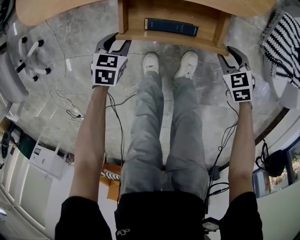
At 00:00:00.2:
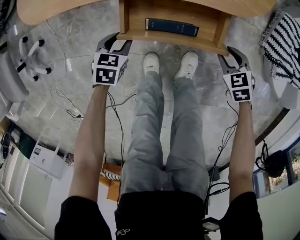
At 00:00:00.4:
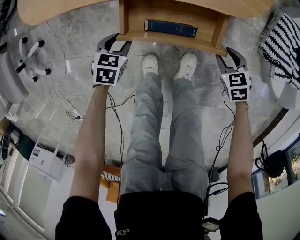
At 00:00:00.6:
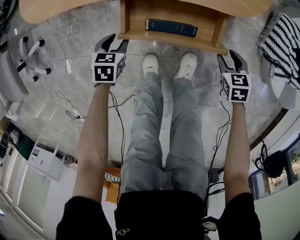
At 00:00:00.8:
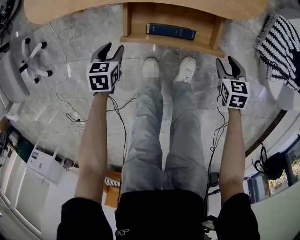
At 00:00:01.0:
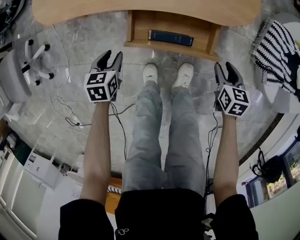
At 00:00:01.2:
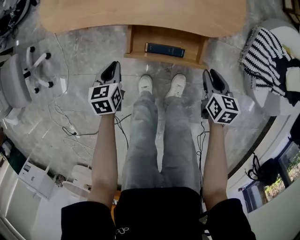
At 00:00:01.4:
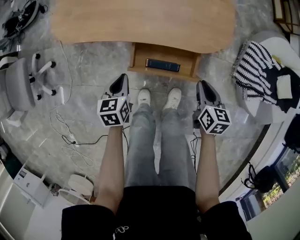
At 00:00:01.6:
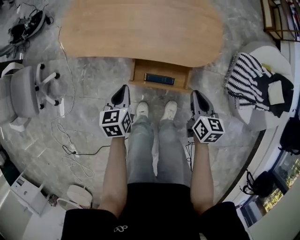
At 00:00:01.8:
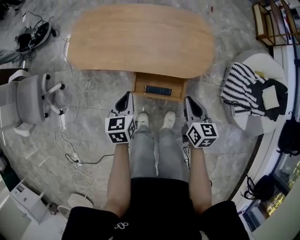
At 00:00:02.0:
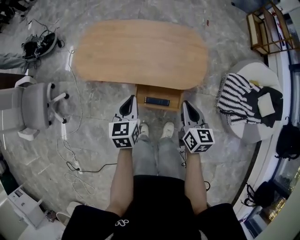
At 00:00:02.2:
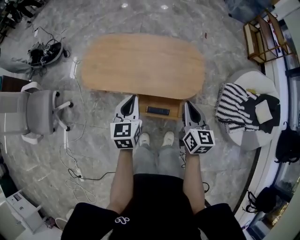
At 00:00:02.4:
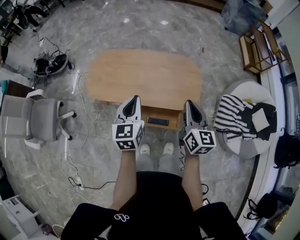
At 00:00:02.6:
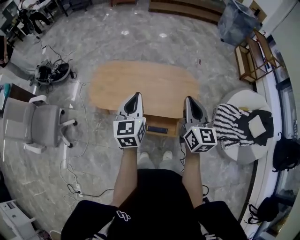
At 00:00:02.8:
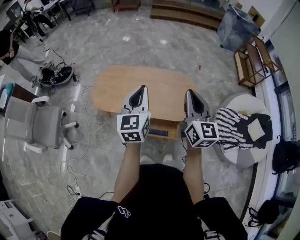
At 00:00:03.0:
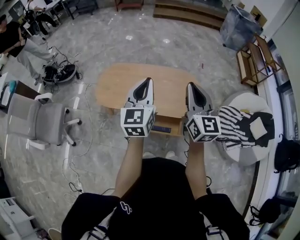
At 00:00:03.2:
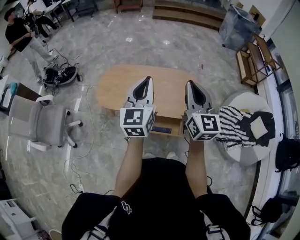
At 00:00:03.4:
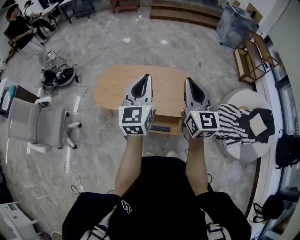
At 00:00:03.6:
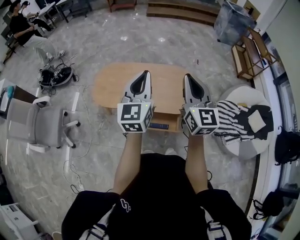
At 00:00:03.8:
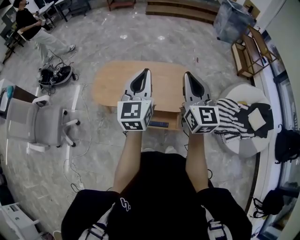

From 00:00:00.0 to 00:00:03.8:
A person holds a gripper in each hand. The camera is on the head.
From 00:00:00.0 to 00:00:01.2: The two grippers go about 15 cm upward. The left gripper swivels approximately 30 degrees, and closes; the right gripper swivels some 40 degrees.
From 00:00:01.2 to 00:00:02.6: Both grippers move upward, approximately 50 cm. The left gripper angles its fingers upward, by roughly 40 degrees. The right gripper points its fingers roughly 50 degrees further upward, and closes.
From 00:00:02.6 to 00:00:03.8: The two grippers go about 10 cm upward.

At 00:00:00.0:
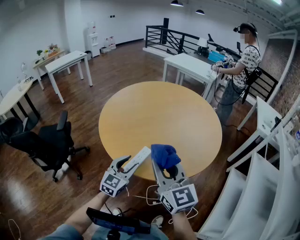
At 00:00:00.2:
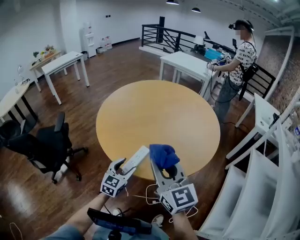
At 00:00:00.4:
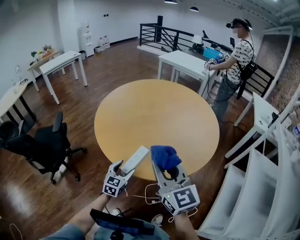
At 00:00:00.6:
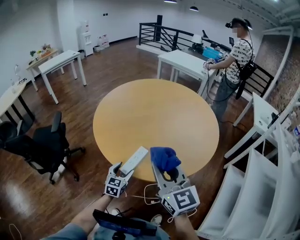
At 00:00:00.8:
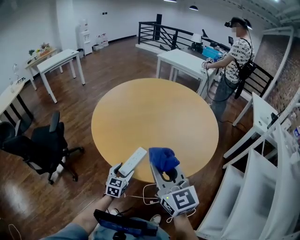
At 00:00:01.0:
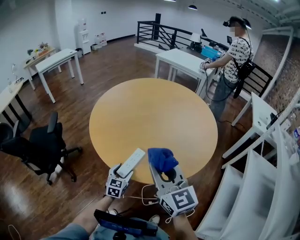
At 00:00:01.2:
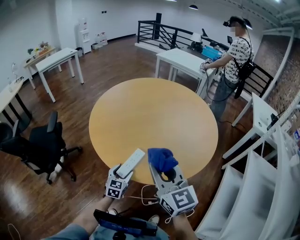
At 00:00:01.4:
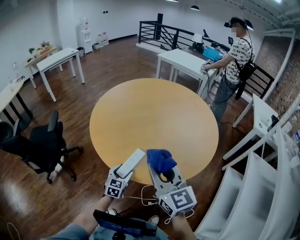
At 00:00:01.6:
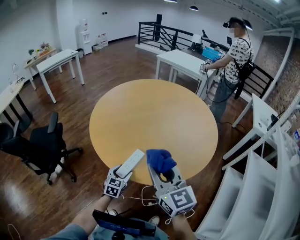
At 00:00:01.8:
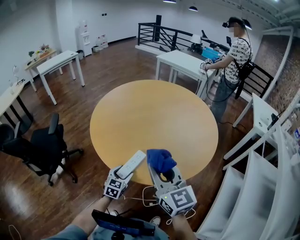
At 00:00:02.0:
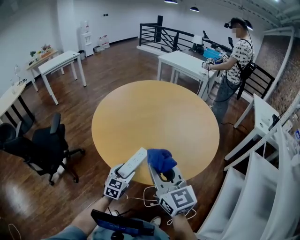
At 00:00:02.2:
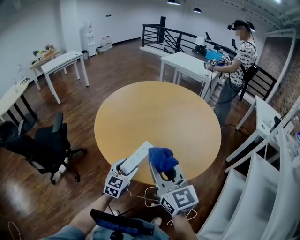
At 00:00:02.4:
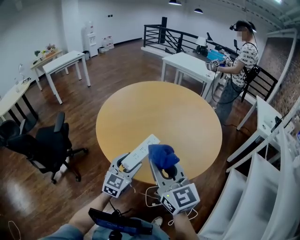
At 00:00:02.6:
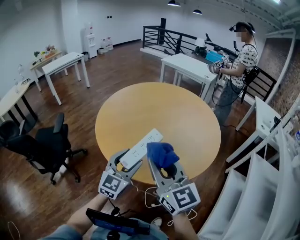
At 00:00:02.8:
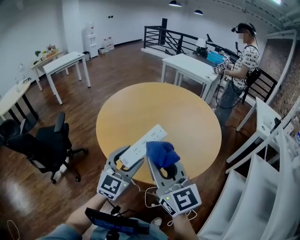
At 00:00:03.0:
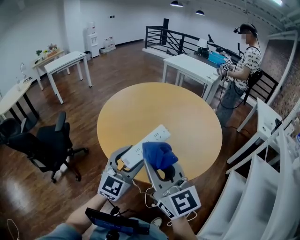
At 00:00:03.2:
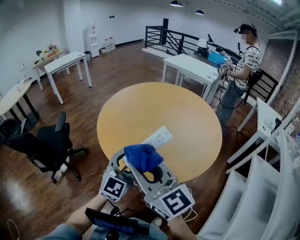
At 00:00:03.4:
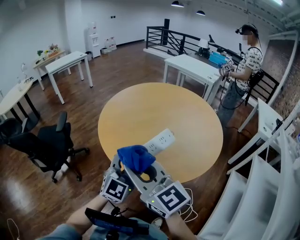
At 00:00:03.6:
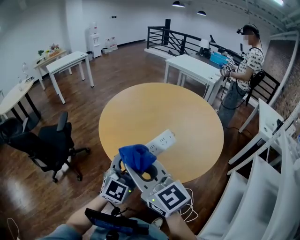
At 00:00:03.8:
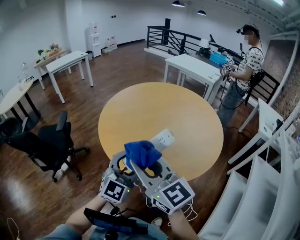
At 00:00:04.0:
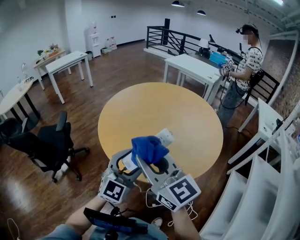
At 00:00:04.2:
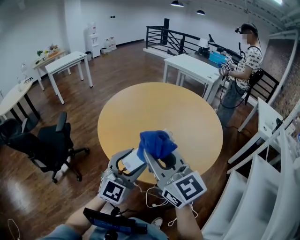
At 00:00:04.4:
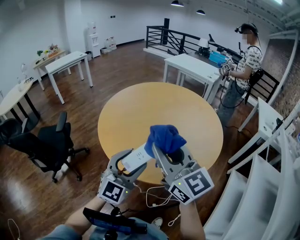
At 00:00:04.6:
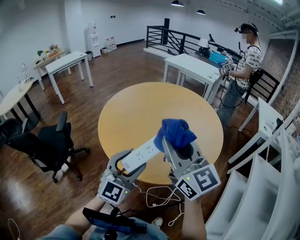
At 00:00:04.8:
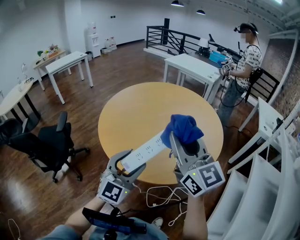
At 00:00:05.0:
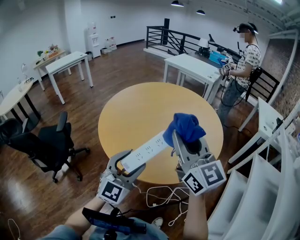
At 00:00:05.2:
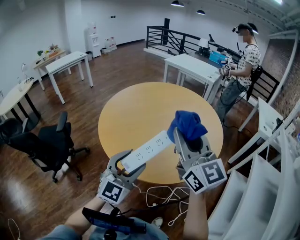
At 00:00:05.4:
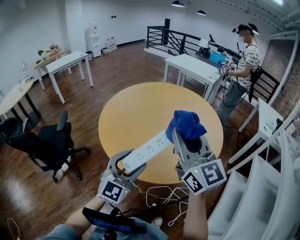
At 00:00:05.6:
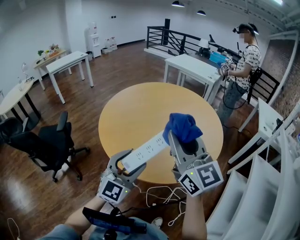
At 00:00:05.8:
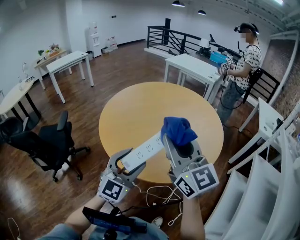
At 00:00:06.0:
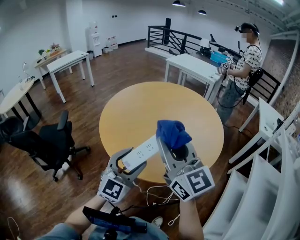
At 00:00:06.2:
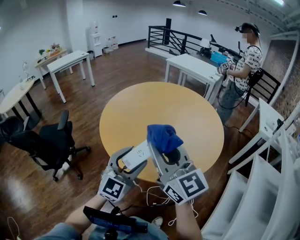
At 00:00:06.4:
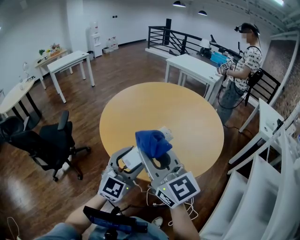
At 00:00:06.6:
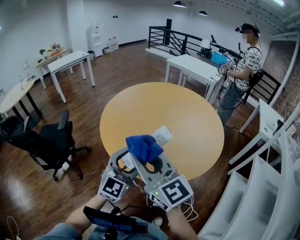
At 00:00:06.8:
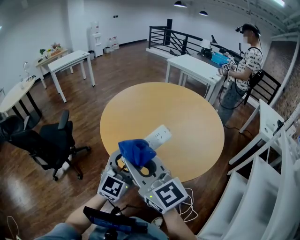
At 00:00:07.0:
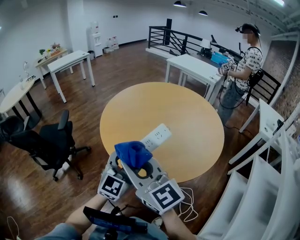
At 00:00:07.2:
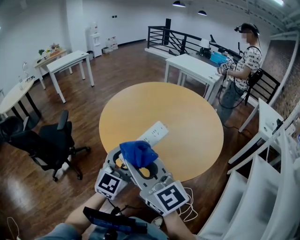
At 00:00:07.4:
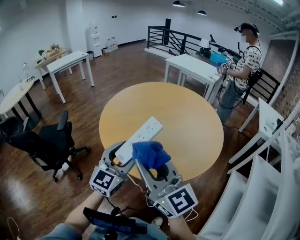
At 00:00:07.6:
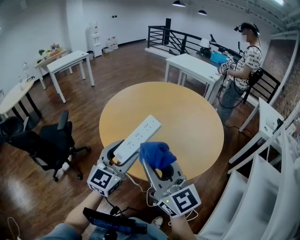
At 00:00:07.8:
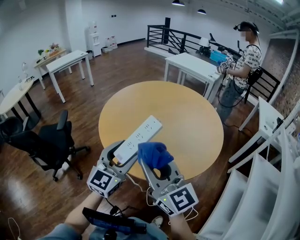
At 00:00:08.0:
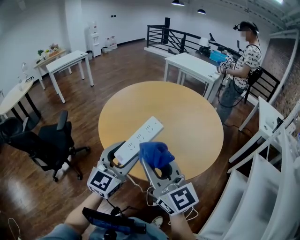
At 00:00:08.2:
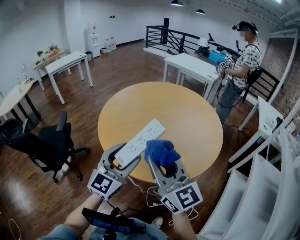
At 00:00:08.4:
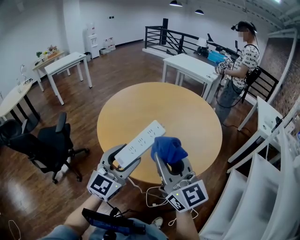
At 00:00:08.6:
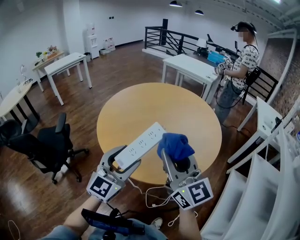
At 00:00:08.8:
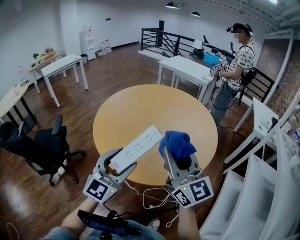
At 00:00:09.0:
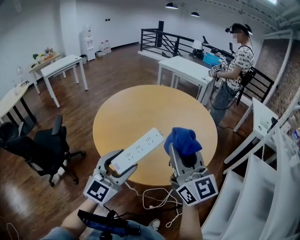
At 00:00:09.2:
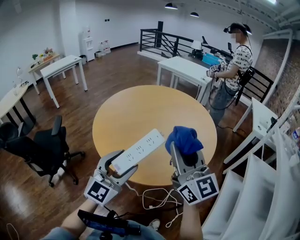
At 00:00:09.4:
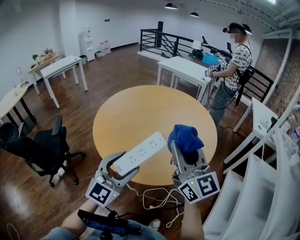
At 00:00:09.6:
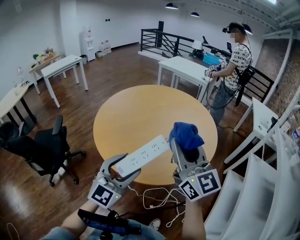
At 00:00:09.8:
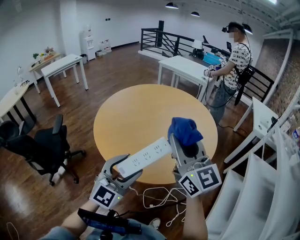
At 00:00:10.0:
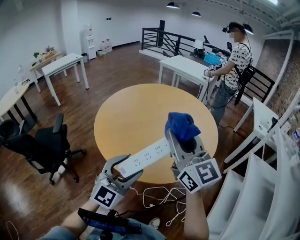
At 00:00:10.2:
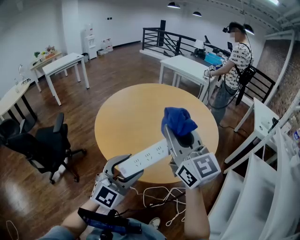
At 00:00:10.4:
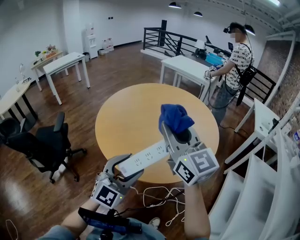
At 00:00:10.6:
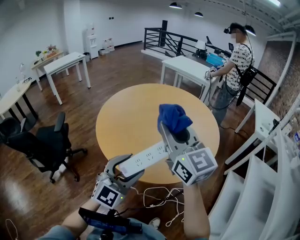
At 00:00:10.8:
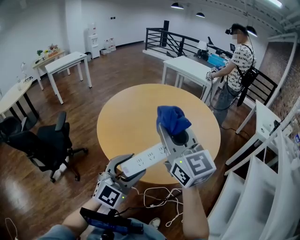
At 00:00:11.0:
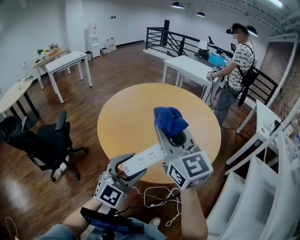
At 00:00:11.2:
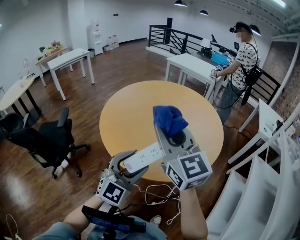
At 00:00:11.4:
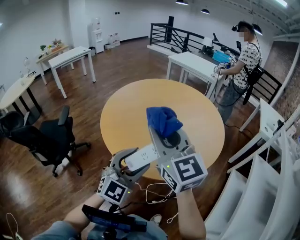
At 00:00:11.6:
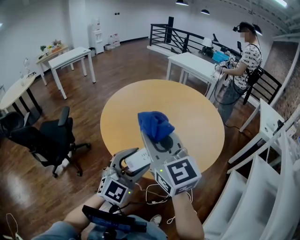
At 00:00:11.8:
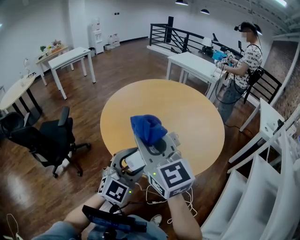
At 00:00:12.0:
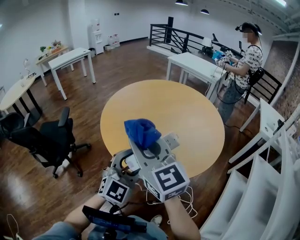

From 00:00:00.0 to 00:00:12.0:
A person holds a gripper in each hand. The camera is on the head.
From 00:00:00.0 to 00:00:01.6: The left gripper is displaced downward by some 15 cm, and changes its angle by roughly 20 degrees.
From 00:00:01.6 to 00:00:03.0: The right gripper travels upward by approximately 10 cm, while the left gripper shifts roughly 30 cm upward, and rotates approximately 40 degrees.
From 00:00:03.0 to 00:00:04.4: The right gripper moves roughly 5 cm to the left and comes back.
From 00:00:06.0 to 00:00:07.6: The right gripper moves some 10 cm to the left and comes back.
From 00:00:07.6 to 00:00:09.0: The right gripper shifts roughly 10 cm to the right.
From 00:00:09.0 to 00:00:10.4: The right gripper shifts about 5 cm to the left.
From 00:00:10.4 to 00:00:12.0: The right gripper is displaced to the left and backward by approximately 10 cm.

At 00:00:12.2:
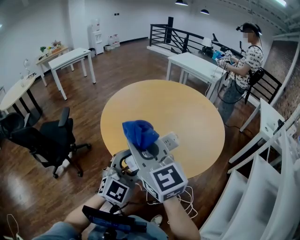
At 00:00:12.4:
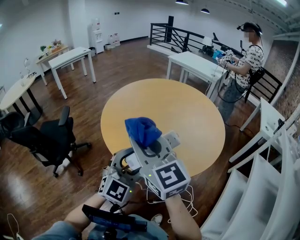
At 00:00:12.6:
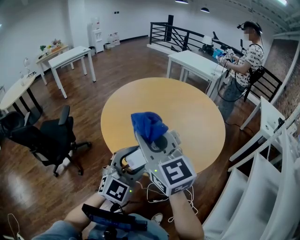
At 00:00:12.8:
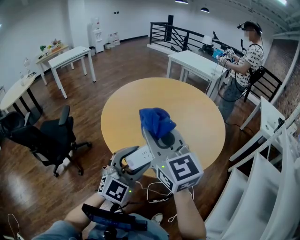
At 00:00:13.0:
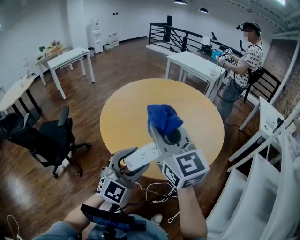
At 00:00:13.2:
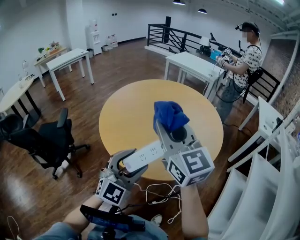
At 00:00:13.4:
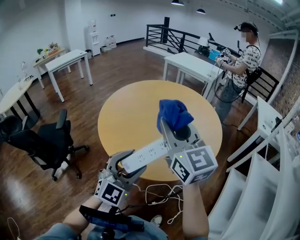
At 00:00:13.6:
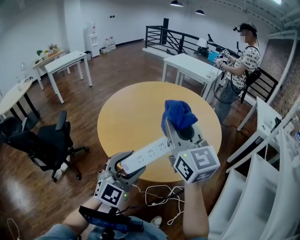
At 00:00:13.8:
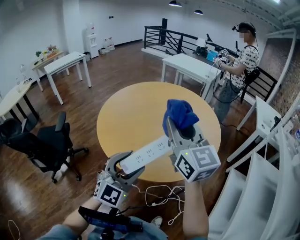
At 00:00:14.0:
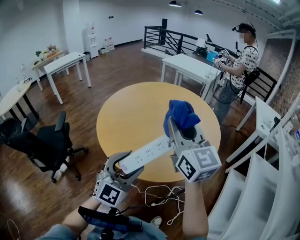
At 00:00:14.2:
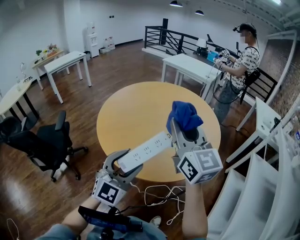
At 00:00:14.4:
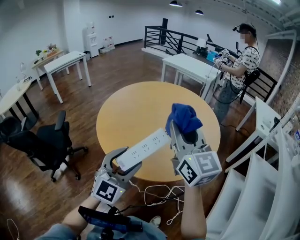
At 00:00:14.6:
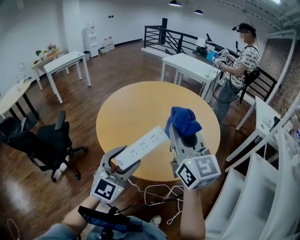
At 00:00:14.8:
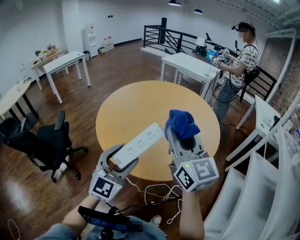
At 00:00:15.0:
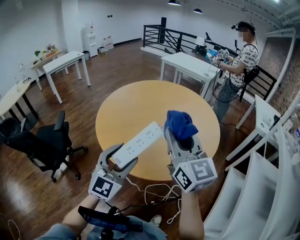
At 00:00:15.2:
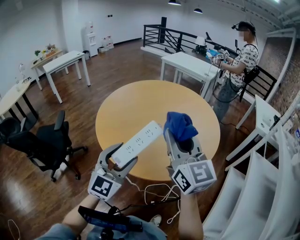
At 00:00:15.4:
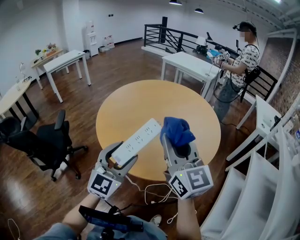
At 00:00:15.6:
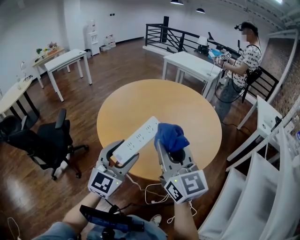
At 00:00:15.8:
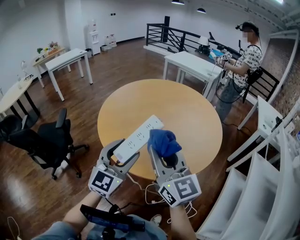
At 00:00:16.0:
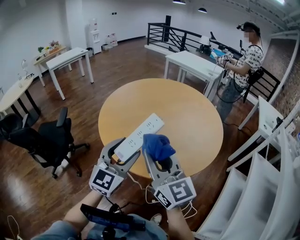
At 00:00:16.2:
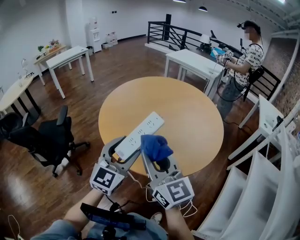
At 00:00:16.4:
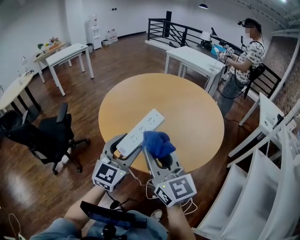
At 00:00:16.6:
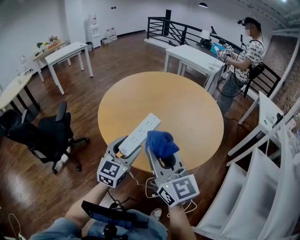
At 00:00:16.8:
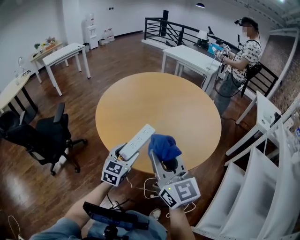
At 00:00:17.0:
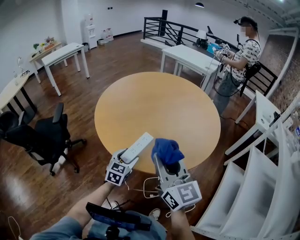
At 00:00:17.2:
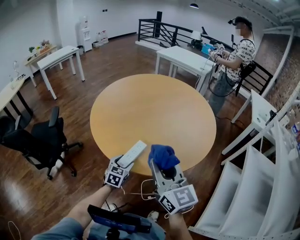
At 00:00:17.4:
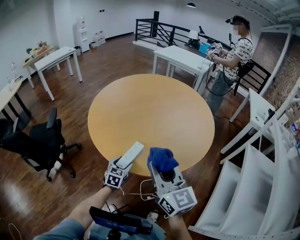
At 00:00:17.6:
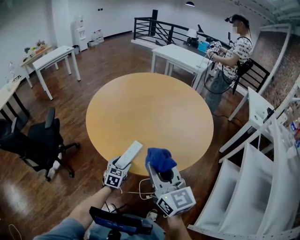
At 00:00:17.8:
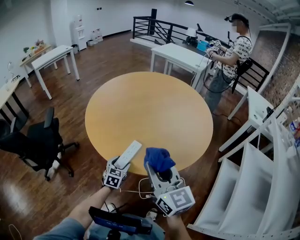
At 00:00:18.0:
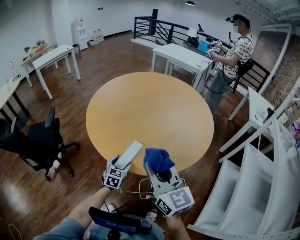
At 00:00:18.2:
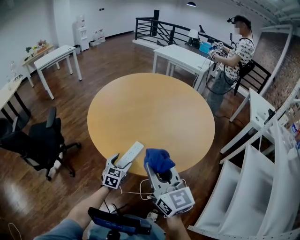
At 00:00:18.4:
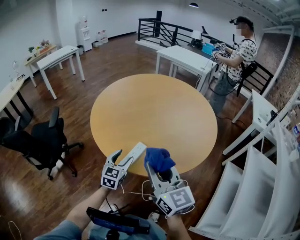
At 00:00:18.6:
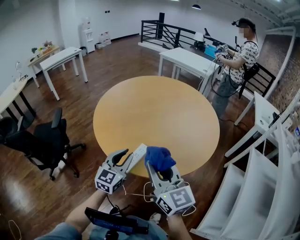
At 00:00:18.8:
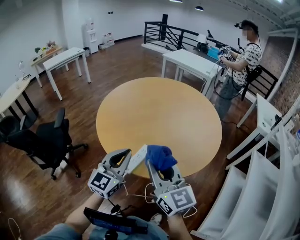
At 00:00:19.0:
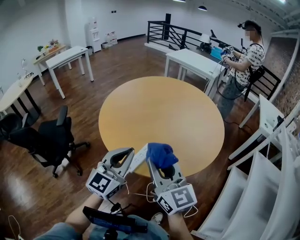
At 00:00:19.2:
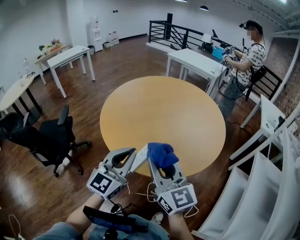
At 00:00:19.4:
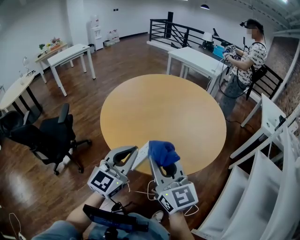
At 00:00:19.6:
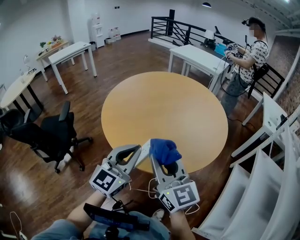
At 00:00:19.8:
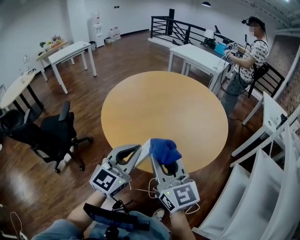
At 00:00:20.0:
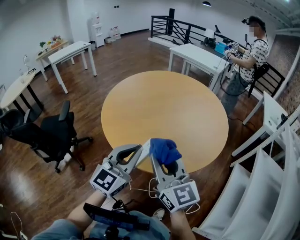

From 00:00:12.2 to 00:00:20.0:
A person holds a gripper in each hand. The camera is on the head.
From 00:00:12.2 to 00:00:13.8: The right gripper goes about 15 cm to the right and forward.
From 00:00:13.8 to 00:00:15.4: The right gripper ends up approximately 5 cm from where it was.
From 00:00:15.4 to 00:00:16.8: The left gripper travels downward by some 15 cm, and rotates roughly 20 degrees, while the right gripper moves downward, approximately 5 cm.
From 00:00:16.8 to 00:00:18.4: The left gripper moves downward, about 5 cm.
From 00:00:18.4 to 00:00:20.0: The left gripper is displaced upward by about 20 cm, changes its angle by roughly 20 degrees, and closes.
